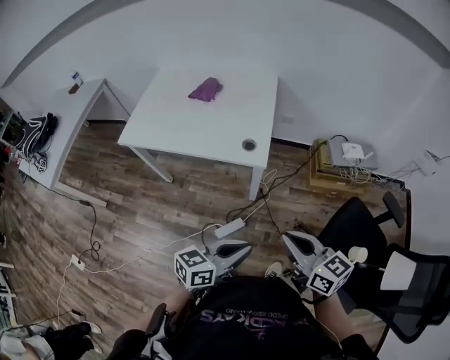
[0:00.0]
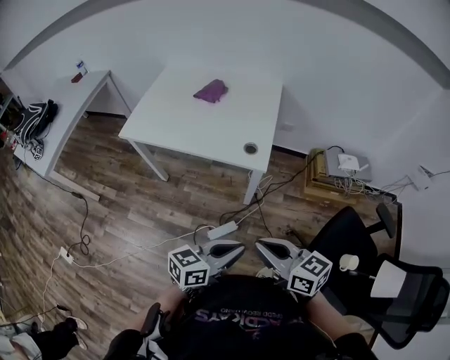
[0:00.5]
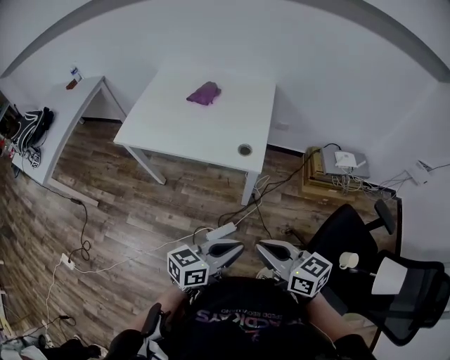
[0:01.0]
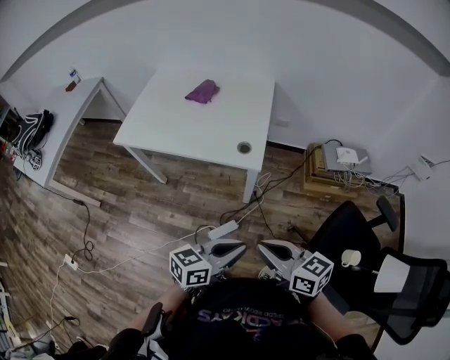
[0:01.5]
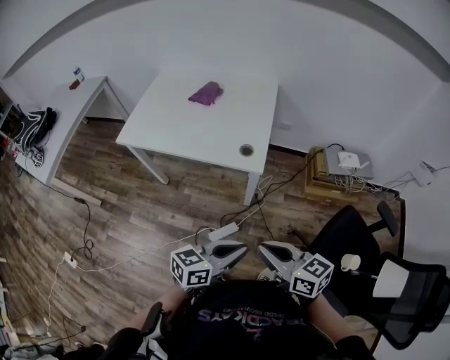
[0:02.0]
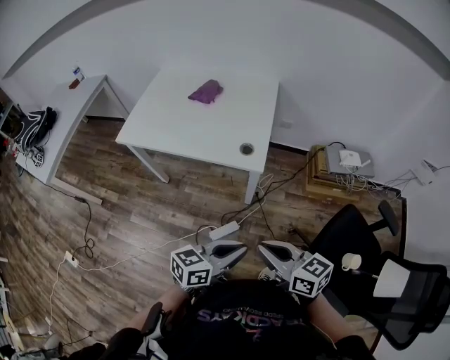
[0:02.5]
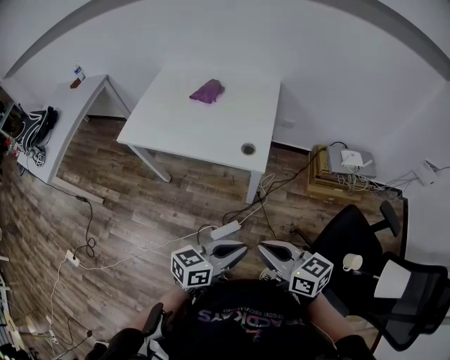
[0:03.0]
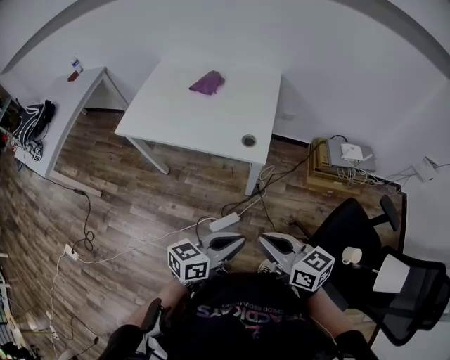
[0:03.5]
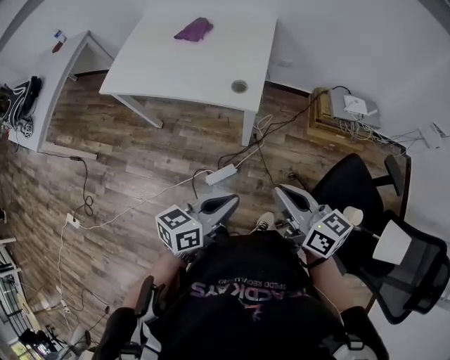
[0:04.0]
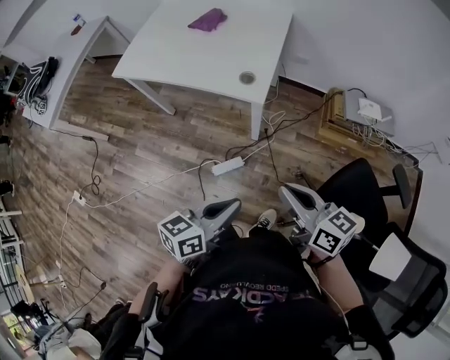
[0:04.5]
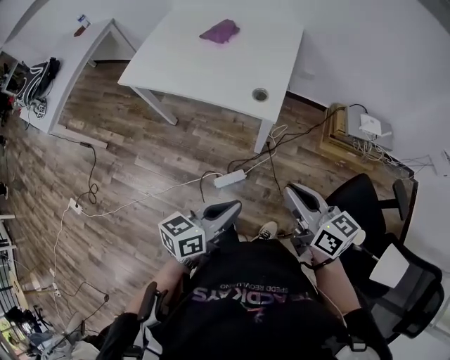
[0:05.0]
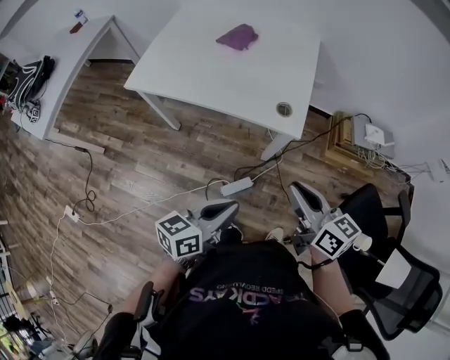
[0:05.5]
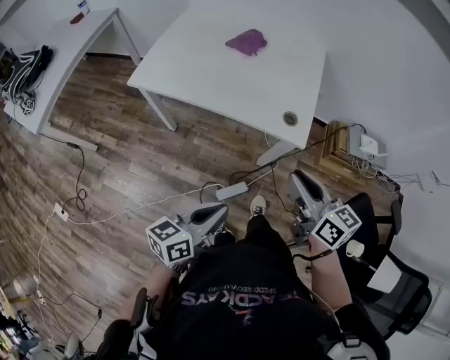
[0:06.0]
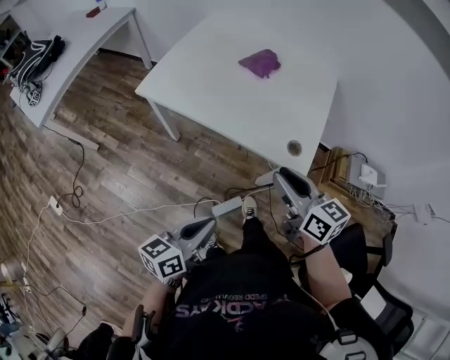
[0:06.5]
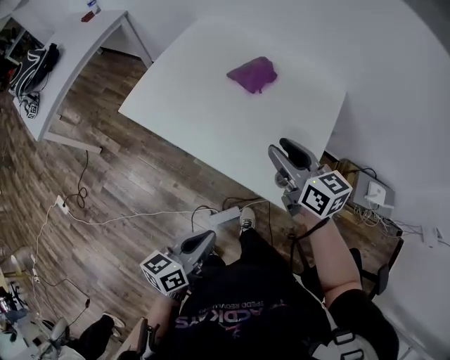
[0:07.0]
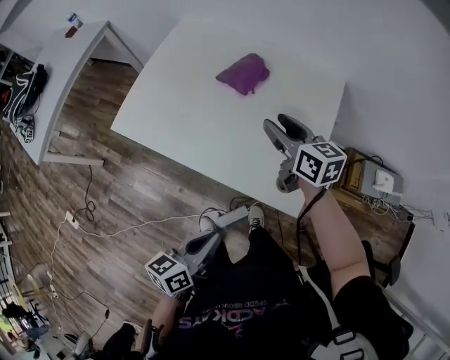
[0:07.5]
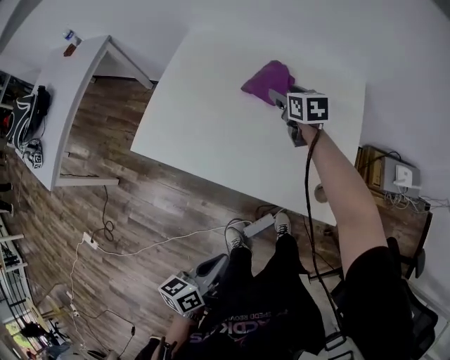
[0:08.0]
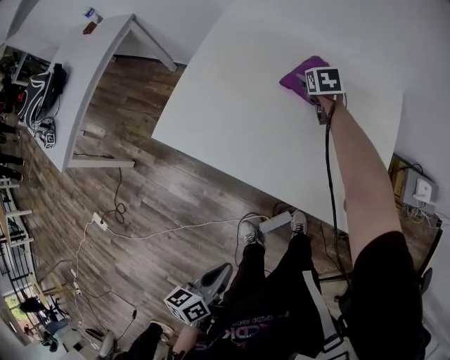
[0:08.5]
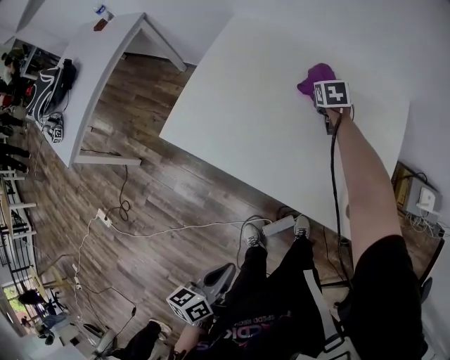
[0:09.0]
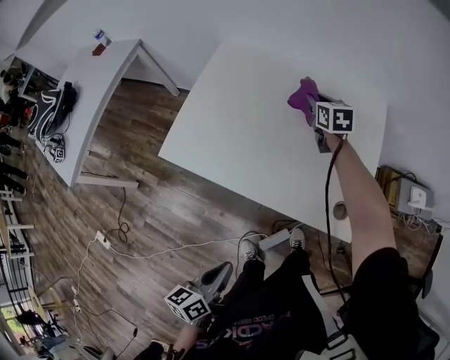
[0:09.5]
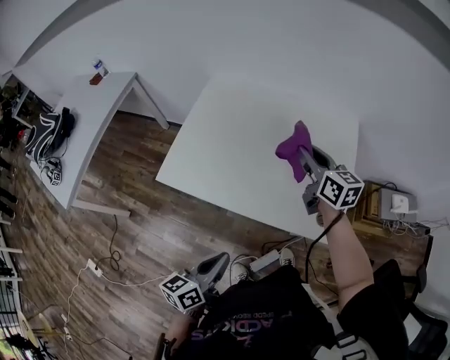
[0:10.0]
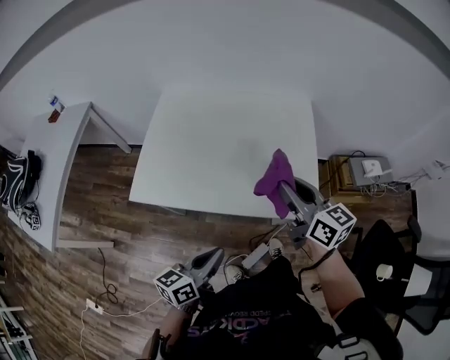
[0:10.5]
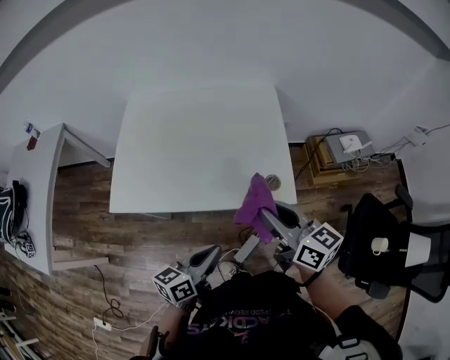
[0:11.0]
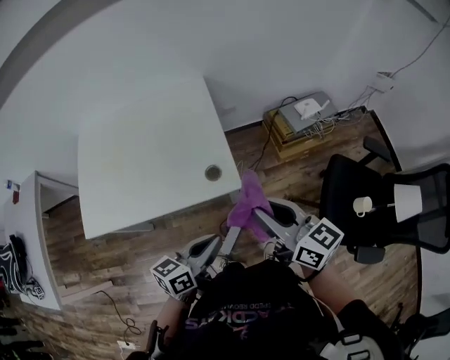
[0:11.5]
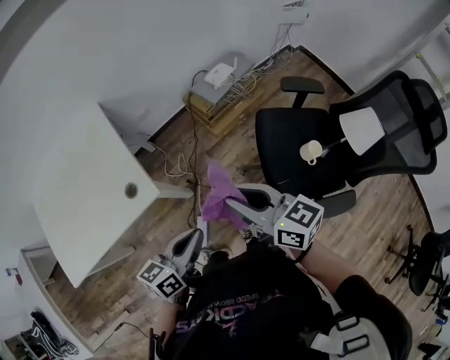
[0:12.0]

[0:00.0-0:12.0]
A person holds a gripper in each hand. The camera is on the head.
0:00.0 to 0:02.0: The right gripper ends up some 5 cm from where it was.
0:02.0 to 0:04.0: The right gripper is displaced to the right by some 5 cm.
0:04.0 to 0:06.0: The right gripper shifts approximately 20 cm to the left and forward, while the left gripper moves to the left, some 20 cm.
0:06.0 to 0:08.0: The left gripper heads forward, to the left and downward, covering approximately 15 cm, and changes its angle by roughly 20 degrees. The right gripper travels forward by roughly 50 cm, changes its angle by roughly 20 degrees, and opens up.
0:08.0 to 0:10.0: The right gripper goes roughly 20 cm upward and backward, turns by roughly 20 degrees, and closes up. Meanwhile the left gripper goes roughly 5 cm upward.
0:10.0 to 0:12.0: The pair of grippers is taken approximately 50 cm. The left gripper rotates about 50 degrees, while the right gripper rotates approximately 30 degrees.

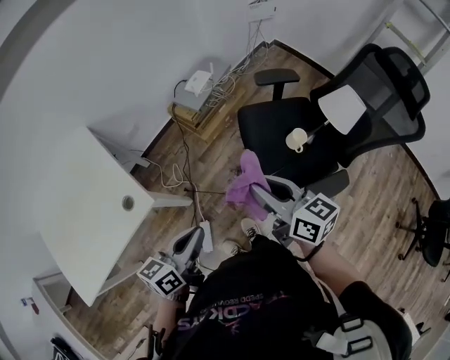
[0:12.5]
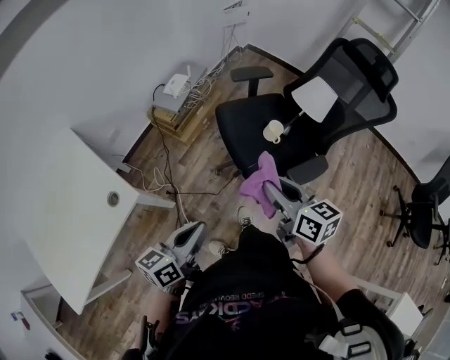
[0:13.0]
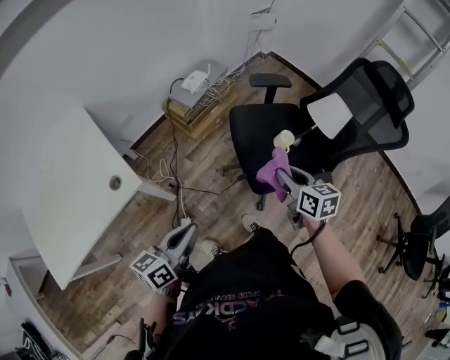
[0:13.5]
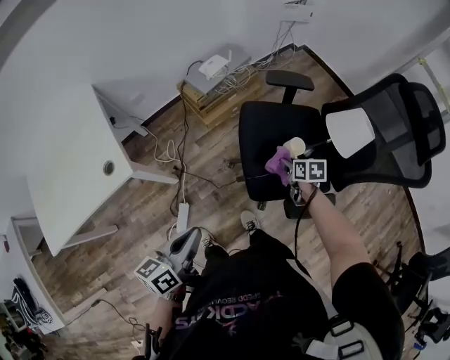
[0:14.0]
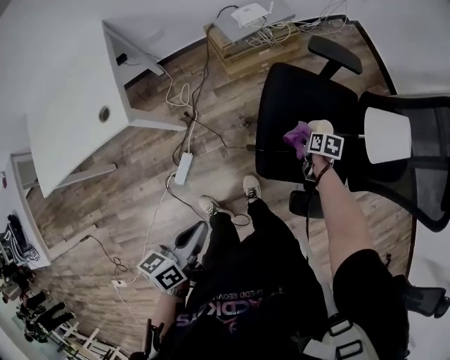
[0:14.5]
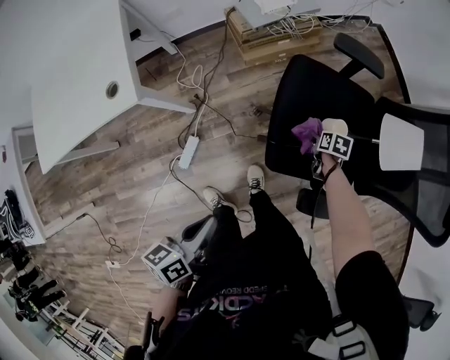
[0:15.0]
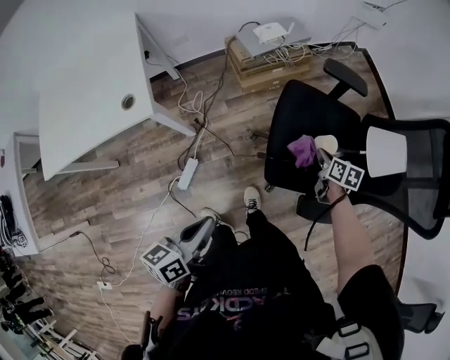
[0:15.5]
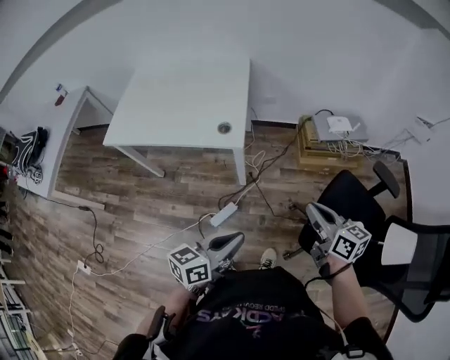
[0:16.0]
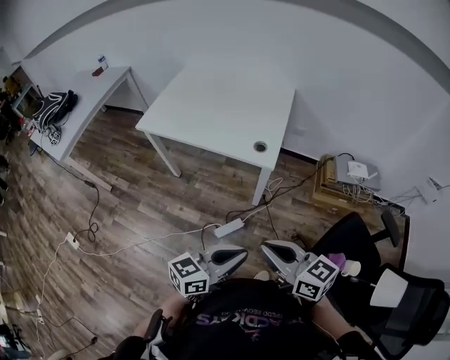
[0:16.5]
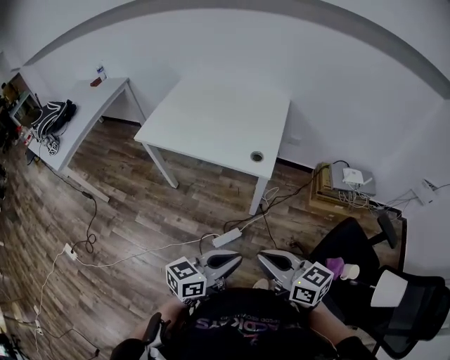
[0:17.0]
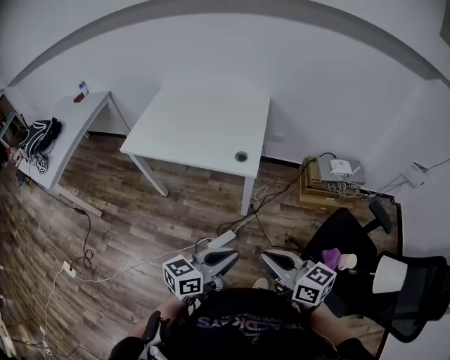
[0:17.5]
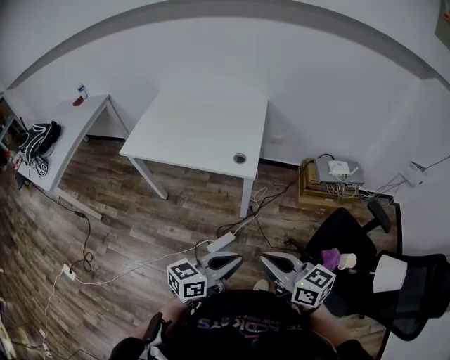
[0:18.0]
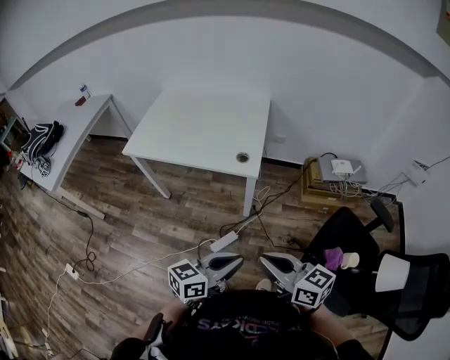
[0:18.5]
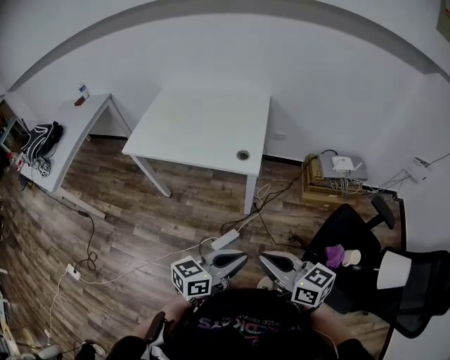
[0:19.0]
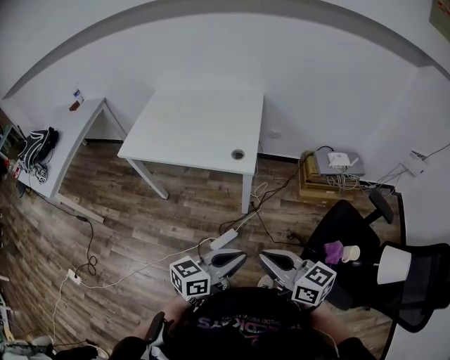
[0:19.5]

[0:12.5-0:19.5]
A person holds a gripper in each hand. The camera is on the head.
0:12.5 to 0:14.5: The right gripper heads downward, covering some 40 cm, and tips its fingers downward by some 50 degrees, while the left gripper ends up roughly 15 cm from where it was, and swivels roughly 30 degrees.
0:14.5 to 0:16.0: The left gripper ends up about 15 cm from where it was, and rotates approximately 20 degrees, while the right gripper moves upward, about 35 cm, tilts its fingers approximately 50 degrees upward, and closes.
0:16.0 to 0:17.5: The right gripper travels to the left and backward by roughly 20 cm, and turns by roughly 20 degrees. The left gripper shifts approximately 5 cm to the left.
0:17.5 to 0:19.5: There are only small adjustments of the grippers.

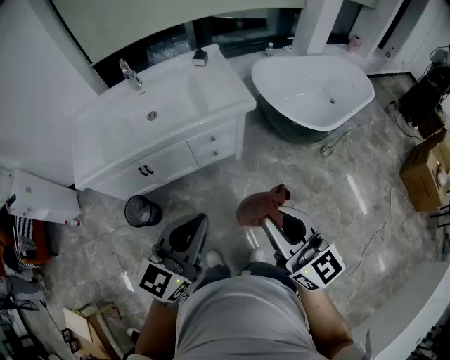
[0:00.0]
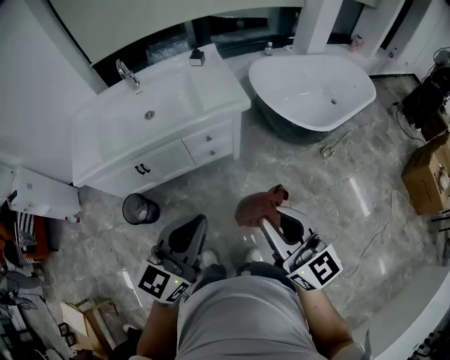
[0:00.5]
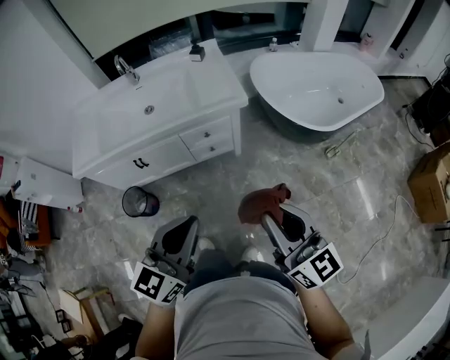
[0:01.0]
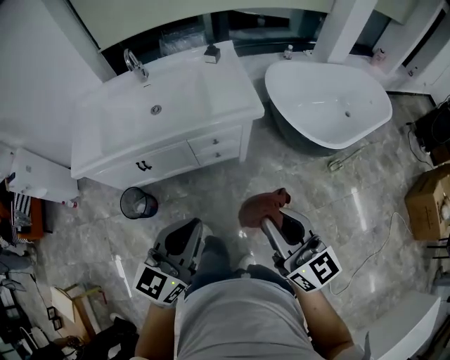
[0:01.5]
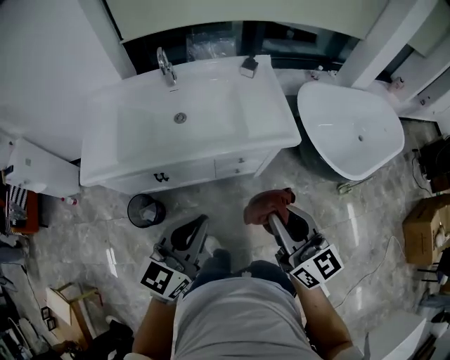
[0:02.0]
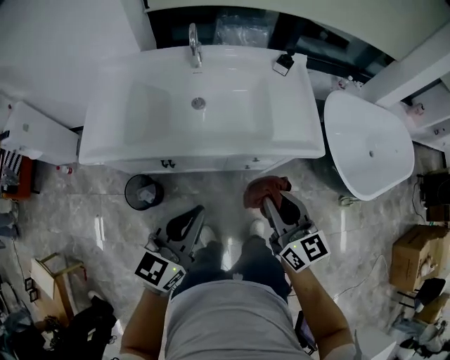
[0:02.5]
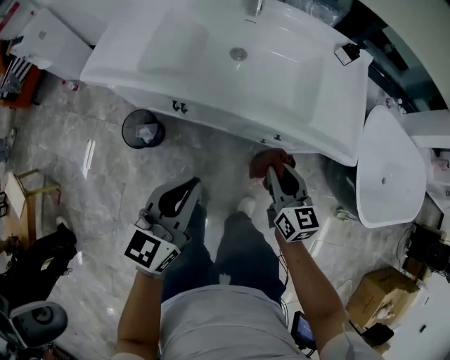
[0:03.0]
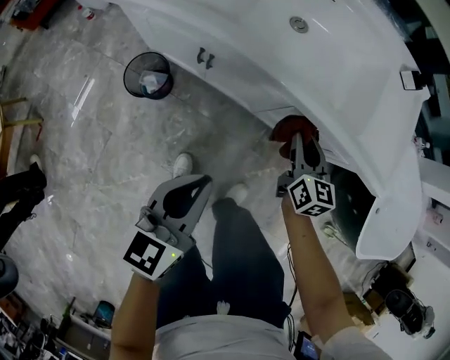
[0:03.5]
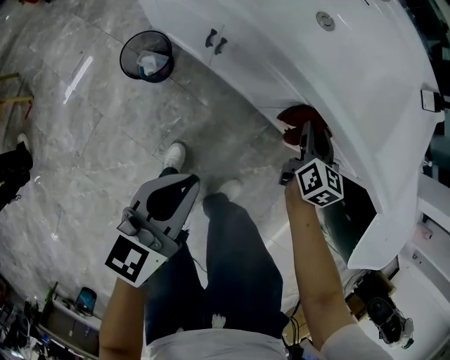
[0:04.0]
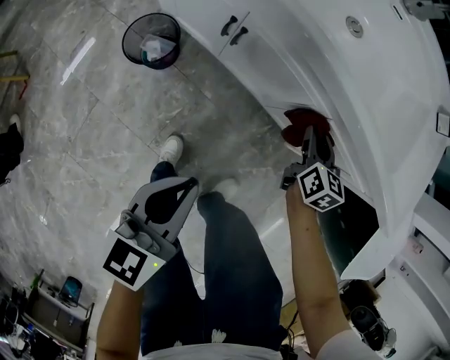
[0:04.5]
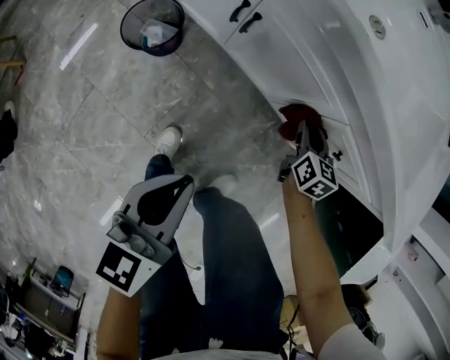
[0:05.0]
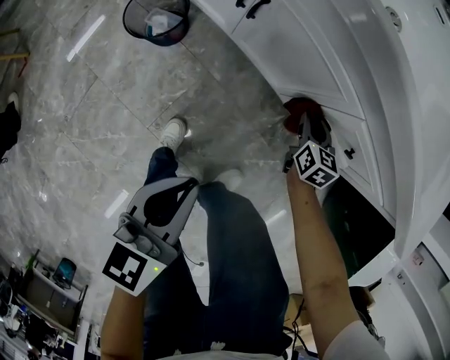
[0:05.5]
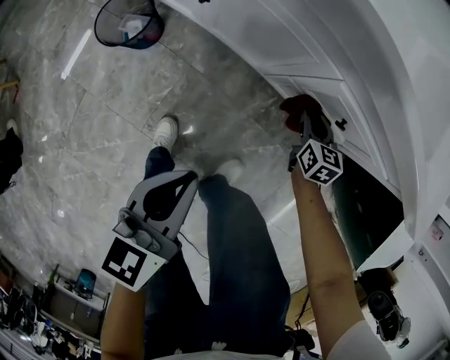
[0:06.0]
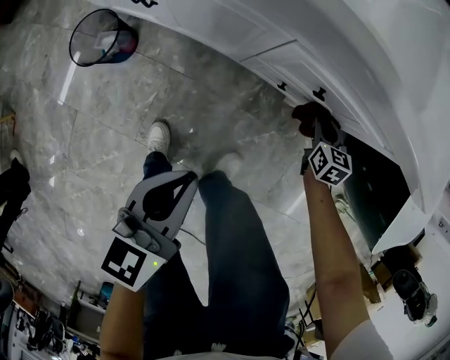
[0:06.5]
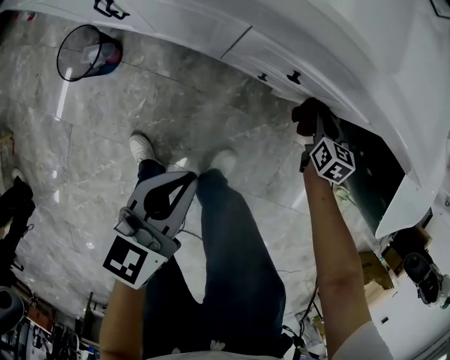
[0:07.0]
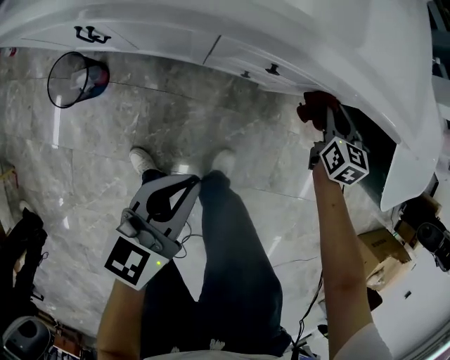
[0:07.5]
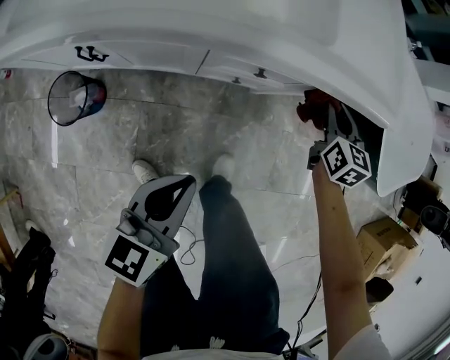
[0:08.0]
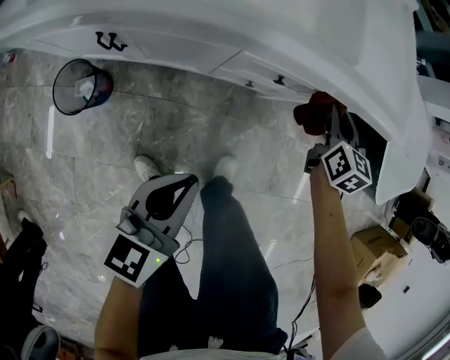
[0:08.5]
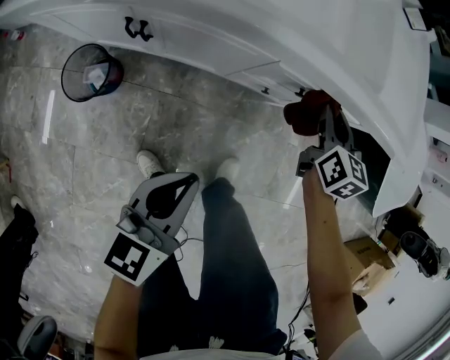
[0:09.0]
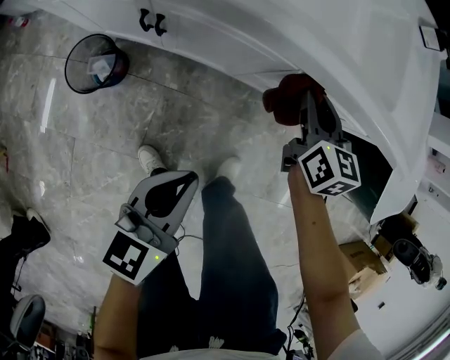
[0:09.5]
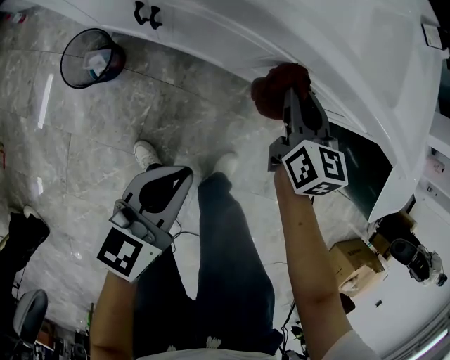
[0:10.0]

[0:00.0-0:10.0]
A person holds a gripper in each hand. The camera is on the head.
0:00.0 to 0:02.0: The left gripper goes approximately 20 cm forward and to the left. Meanwhile the right gripper travels forward by approximately 20 cm.
0:02.0 to 0:04.0: The left gripper moves downward, about 30 cm, and rotates roughly 50 degrees. The right gripper travels downward and forward by about 50 cm, and changes its angle by roughly 30 degrees.
0:04.0 to 0:06.0: The right gripper travels downward by about 20 cm, while the left gripper is displaced downward and to the right by approximately 15 cm.
0:06.0 to 0:08.0: The left gripper shifts by roughly 10 cm, and changes its angle by approximately 30 degrees. The right gripper travels upward by roughly 20 cm, and rotates about 30 degrees.
0:08.0 to 0:10.0: The right gripper travels to the left by roughly 25 cm; the left gripper is displaced to the left by about 10 cm.
